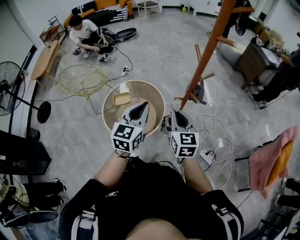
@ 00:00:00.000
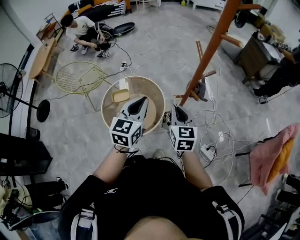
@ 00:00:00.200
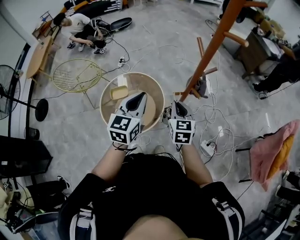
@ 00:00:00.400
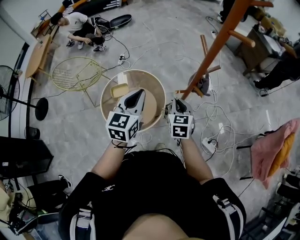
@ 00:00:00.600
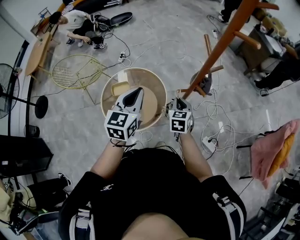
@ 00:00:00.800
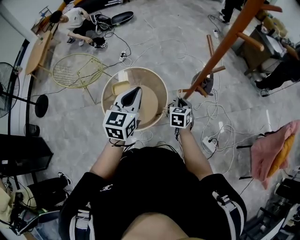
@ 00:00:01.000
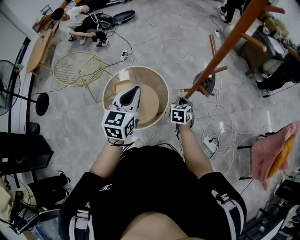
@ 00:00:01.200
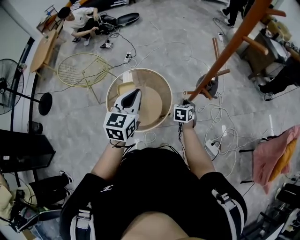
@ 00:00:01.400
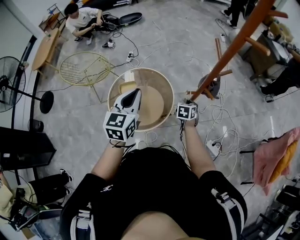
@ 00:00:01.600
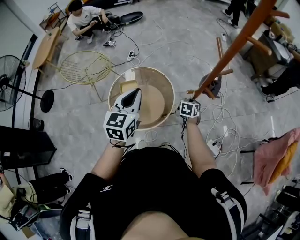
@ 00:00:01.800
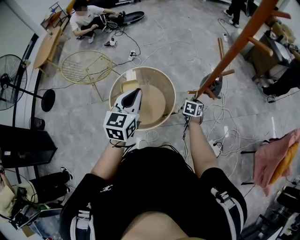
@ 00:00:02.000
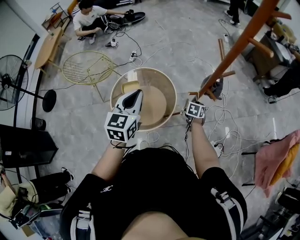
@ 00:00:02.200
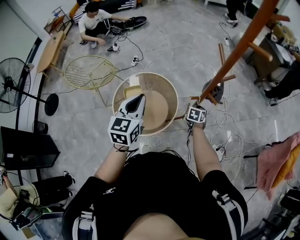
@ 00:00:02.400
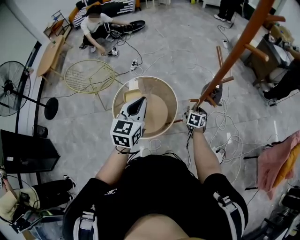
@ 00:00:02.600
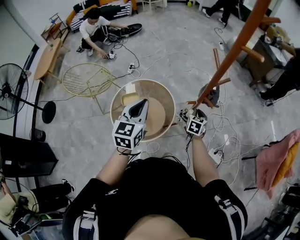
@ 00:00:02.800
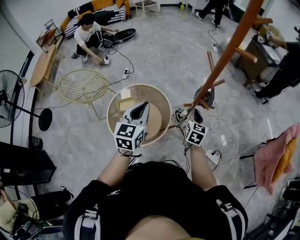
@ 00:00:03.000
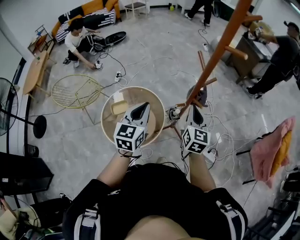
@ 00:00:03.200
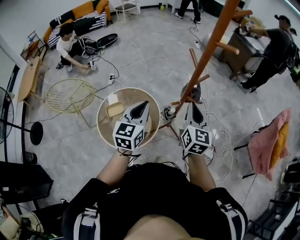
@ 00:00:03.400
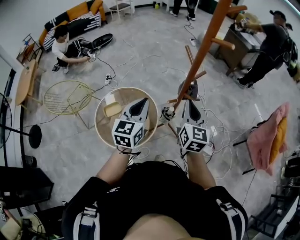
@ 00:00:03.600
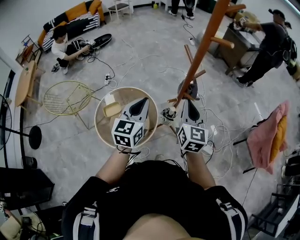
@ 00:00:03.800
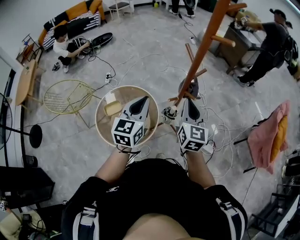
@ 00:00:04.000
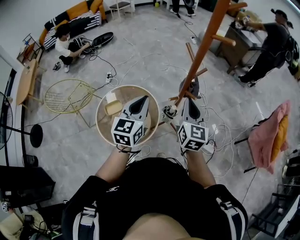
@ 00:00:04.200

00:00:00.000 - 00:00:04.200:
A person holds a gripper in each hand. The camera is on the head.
00:00:00.000 - 00:00:01.400: The left gripper heads to the left and forward, covering about 10 cm. Meanwhile the right gripper shifts some 25 cm downward and forward, and angles its fingers downward, by approximately 30 degrees.
00:00:01.400 - 00:00:02.800: The right gripper moves roughly 5 cm downward and comes back.
00:00:02.800 - 00:00:04.200: The right gripper is displaced upward by about 25 cm, and changes its angle by about 30 degrees. Meanwhile the left gripper travels to the right by roughly 5 cm.

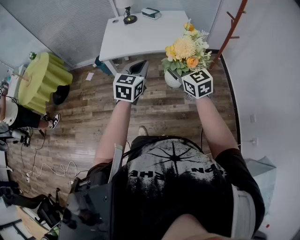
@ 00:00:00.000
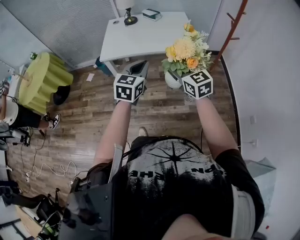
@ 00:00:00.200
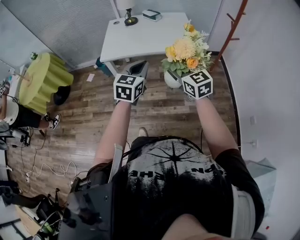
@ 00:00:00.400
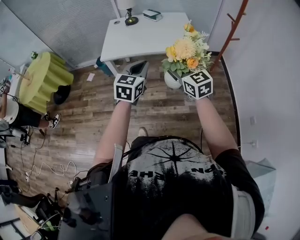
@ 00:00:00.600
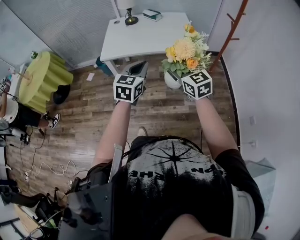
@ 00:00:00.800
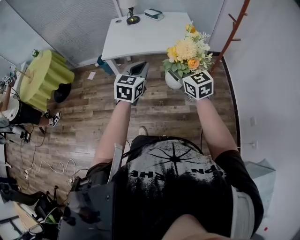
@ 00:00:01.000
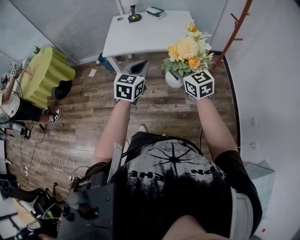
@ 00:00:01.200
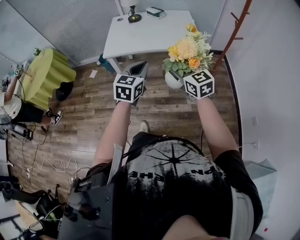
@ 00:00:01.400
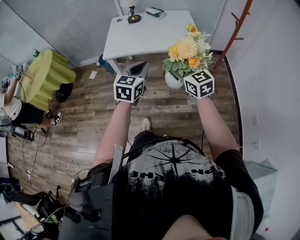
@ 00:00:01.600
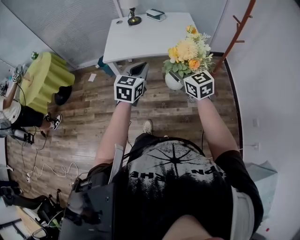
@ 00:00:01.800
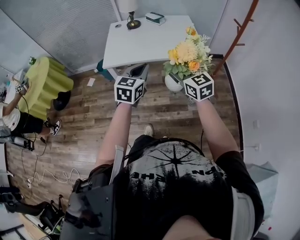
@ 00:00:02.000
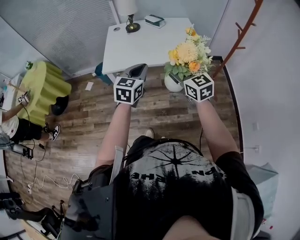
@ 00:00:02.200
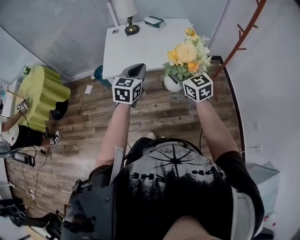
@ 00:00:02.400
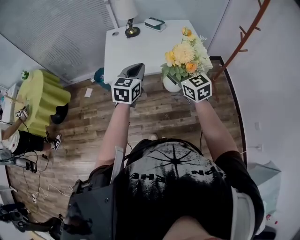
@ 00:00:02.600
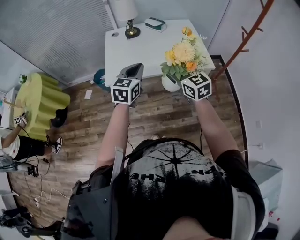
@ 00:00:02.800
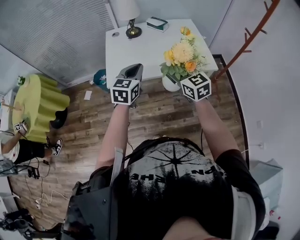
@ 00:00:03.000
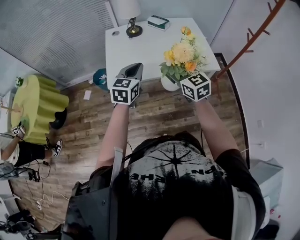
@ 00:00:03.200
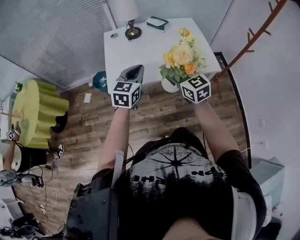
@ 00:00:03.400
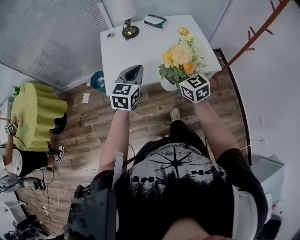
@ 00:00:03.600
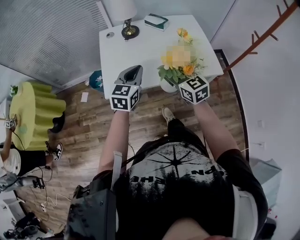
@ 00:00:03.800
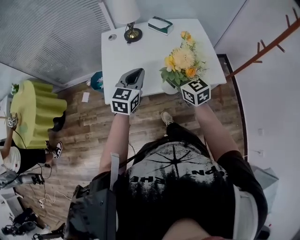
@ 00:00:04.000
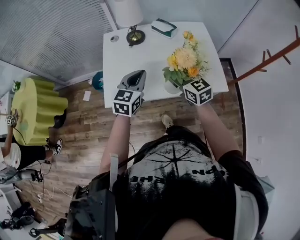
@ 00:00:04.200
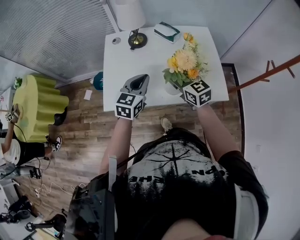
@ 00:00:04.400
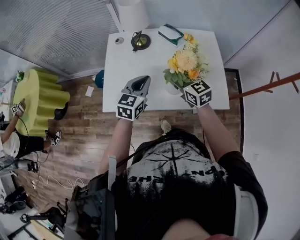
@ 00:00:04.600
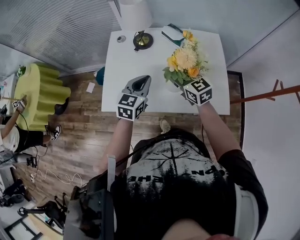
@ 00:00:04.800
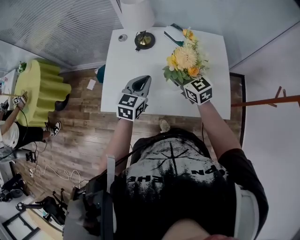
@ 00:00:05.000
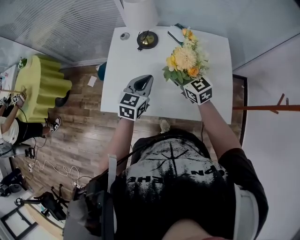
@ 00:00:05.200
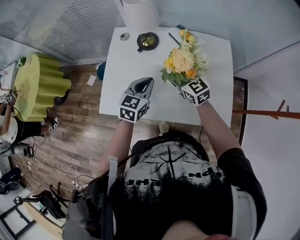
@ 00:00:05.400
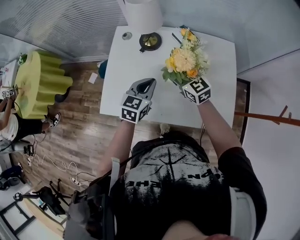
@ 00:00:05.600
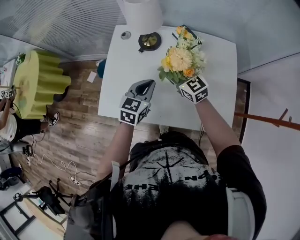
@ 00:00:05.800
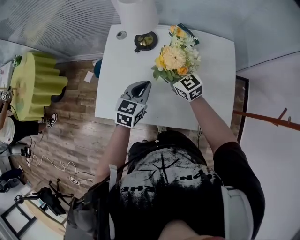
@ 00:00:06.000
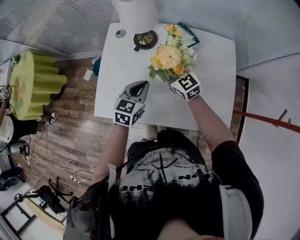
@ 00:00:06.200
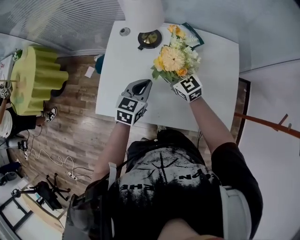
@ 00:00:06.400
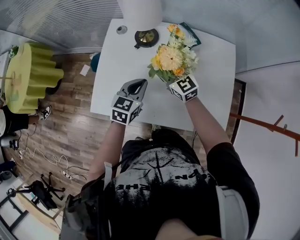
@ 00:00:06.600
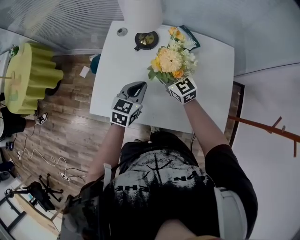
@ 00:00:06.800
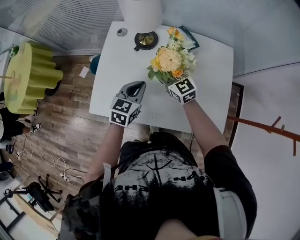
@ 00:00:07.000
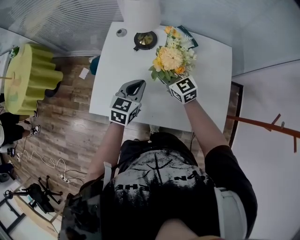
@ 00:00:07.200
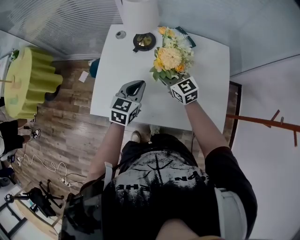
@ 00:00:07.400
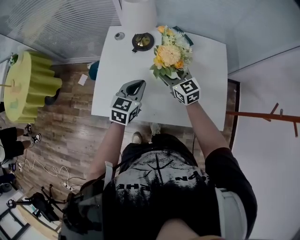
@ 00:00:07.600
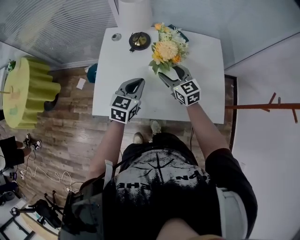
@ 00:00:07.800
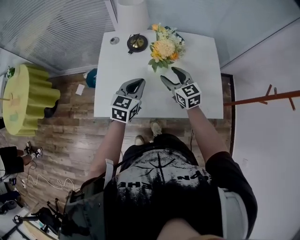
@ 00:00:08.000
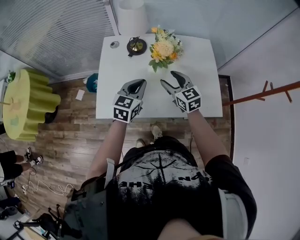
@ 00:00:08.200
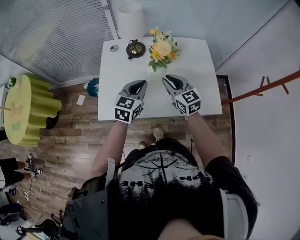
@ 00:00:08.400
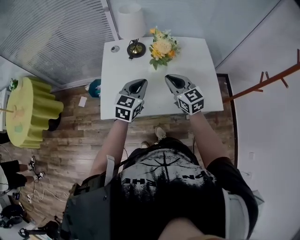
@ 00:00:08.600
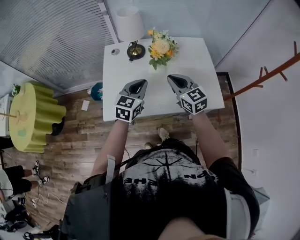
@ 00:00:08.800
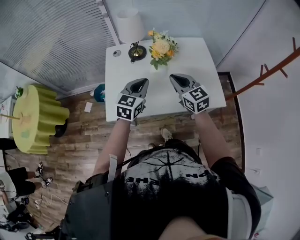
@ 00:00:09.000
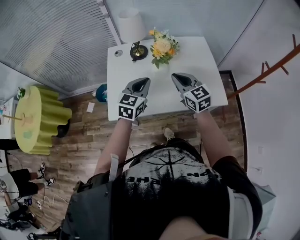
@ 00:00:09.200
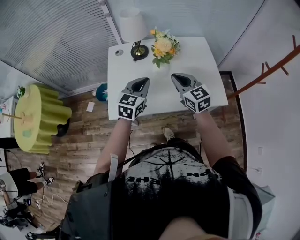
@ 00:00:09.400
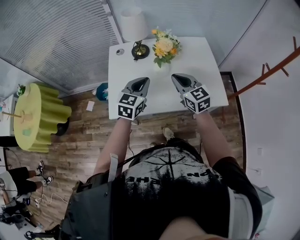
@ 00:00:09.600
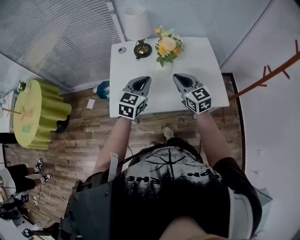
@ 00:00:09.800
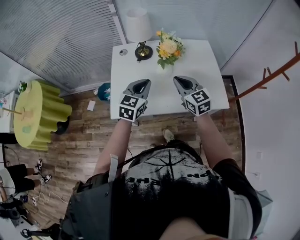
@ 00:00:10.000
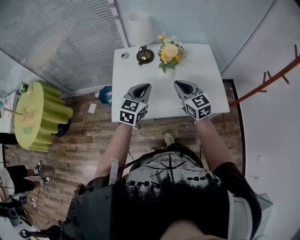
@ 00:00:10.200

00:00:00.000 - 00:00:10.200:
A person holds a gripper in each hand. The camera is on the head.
00:00:00.000 - 00:00:01.400: The grippers make only small movements.
00:00:01.400 - 00:00:03.000: The two grippers go roughly 25 cm forward and to the left.
00:00:03.000 - 00:00:04.400: Both grippers travel together forward, some 20 cm.
00:00:04.400 - 00:00:05.800: The two grippers go about 15 cm forward and downward.
00:00:05.800 - 00:00:07.200: The grippers stay close to where they were, moving slightly.
00:00:07.200 - 00:00:08.800: The right gripper is displaced backward and upward by roughly 20 cm, and closes, while the left gripper goes some 10 cm upward and backward.
00:00:08.800 - 00:00:10.200: The grippers stay close to where they were, moving slightly.

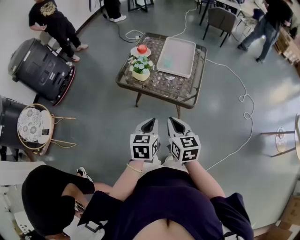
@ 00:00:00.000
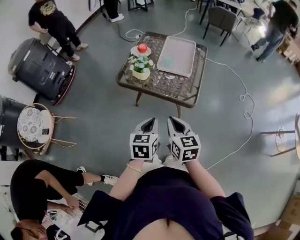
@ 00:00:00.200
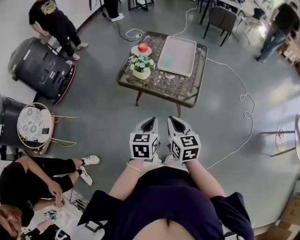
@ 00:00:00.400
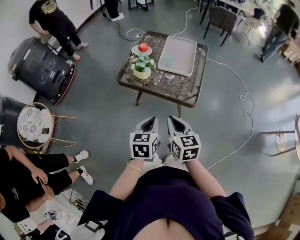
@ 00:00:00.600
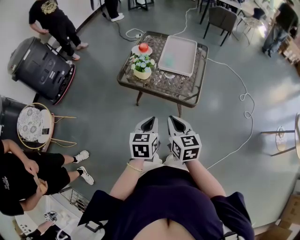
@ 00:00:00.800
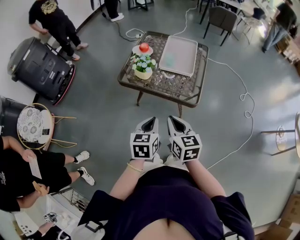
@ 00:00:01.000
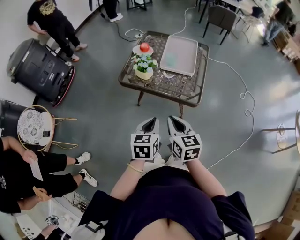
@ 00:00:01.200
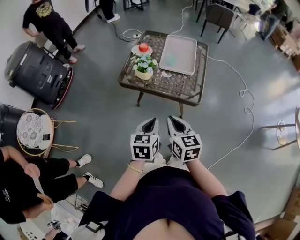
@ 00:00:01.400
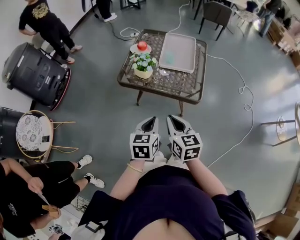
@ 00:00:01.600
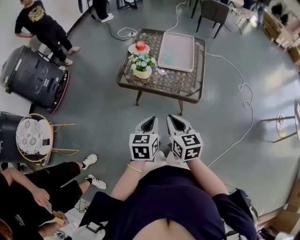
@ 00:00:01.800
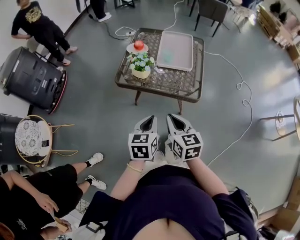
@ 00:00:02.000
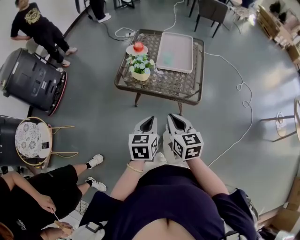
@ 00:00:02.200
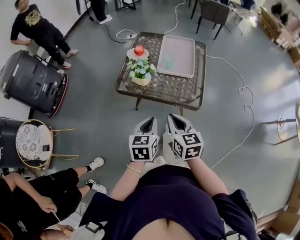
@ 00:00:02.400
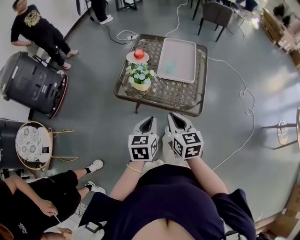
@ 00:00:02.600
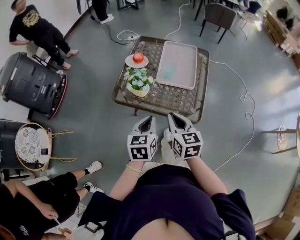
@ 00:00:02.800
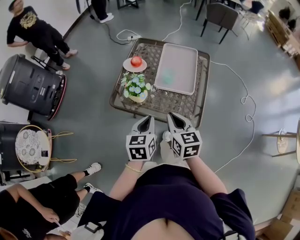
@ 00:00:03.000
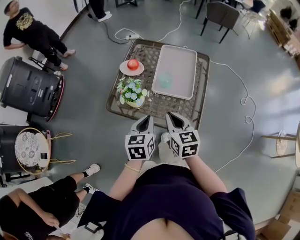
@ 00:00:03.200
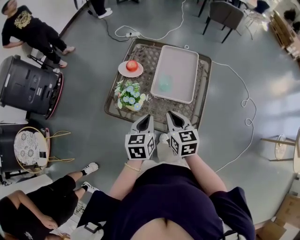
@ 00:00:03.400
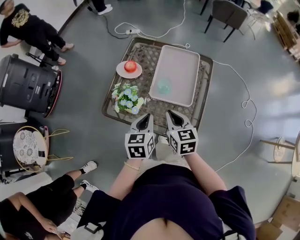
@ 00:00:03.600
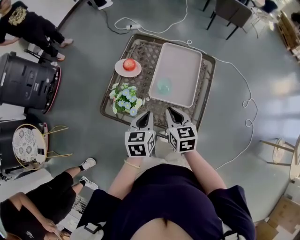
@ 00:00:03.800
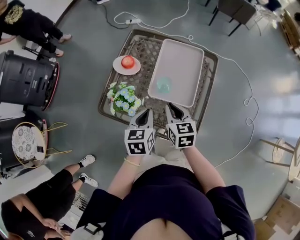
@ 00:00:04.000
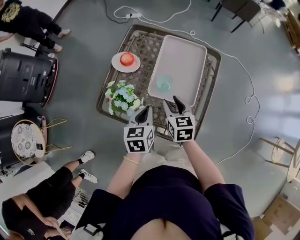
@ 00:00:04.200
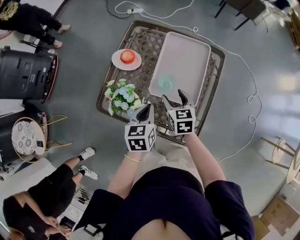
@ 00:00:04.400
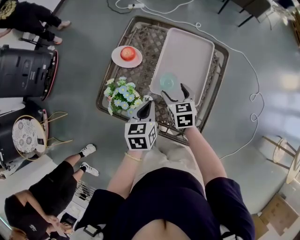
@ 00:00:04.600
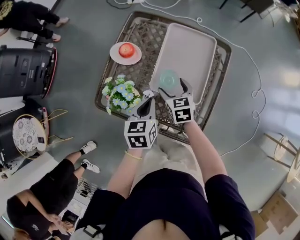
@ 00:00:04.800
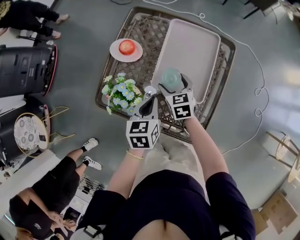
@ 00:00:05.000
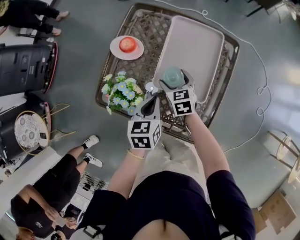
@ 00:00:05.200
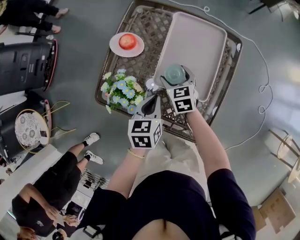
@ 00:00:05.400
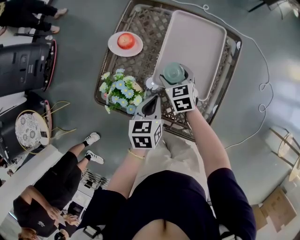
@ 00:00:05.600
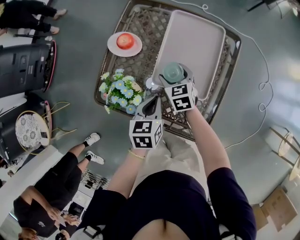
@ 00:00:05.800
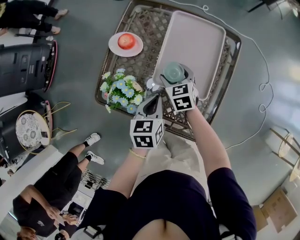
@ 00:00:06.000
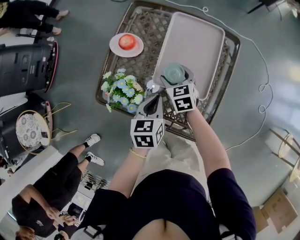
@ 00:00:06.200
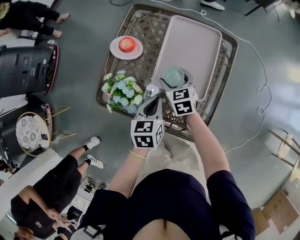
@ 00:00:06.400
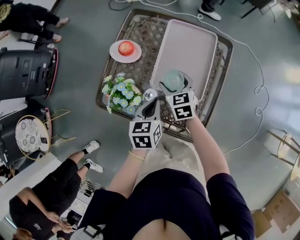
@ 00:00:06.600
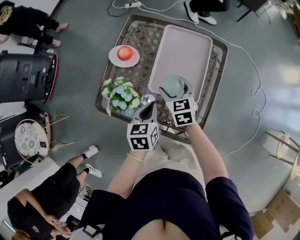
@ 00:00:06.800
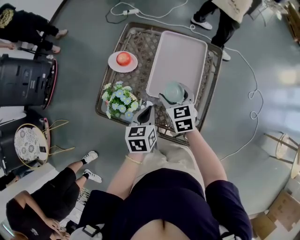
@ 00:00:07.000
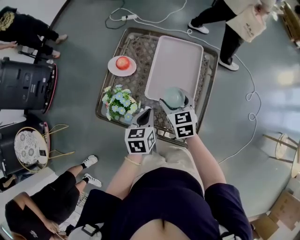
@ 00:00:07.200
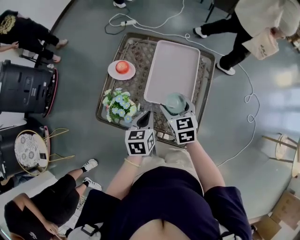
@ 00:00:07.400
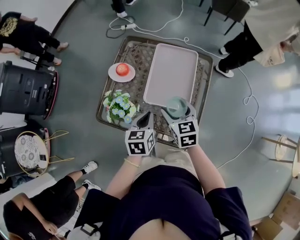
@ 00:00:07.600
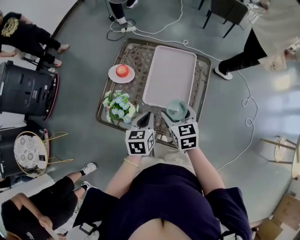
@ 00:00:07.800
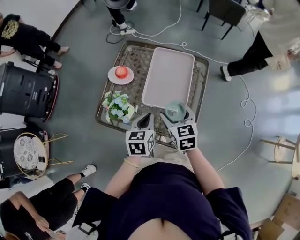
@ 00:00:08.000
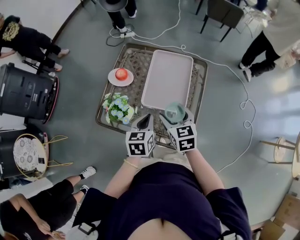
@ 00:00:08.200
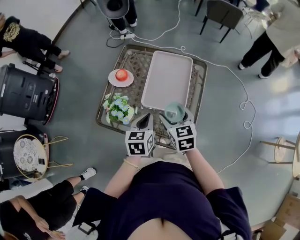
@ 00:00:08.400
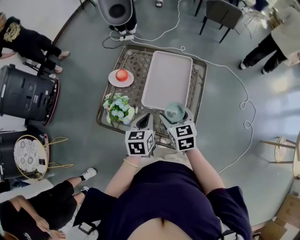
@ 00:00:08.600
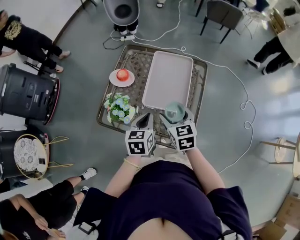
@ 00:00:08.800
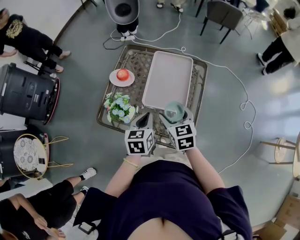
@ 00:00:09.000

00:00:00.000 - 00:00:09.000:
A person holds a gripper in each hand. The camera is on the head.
00:00:00.000 - 00:00:01.600: Both grippers travel together to the left, approximately 5 cm.
00:00:01.600 - 00:00:03.000: Both grippers travel together forward, roughly 20 cm.
00:00:03.000 - 00:00:04.400: The two grippers go some 25 cm forward and downward. The right gripper opens.
00:00:04.400 - 00:00:06.000: The right gripper moves downward and forward, roughly 10 cm, while the left gripper shifts by approximately 5 cm.
00:00:06.000 - 00:00:07.600: The left gripper travels upward by approximately 5 cm; the right gripper is displaced upward and backward by roughly 20 cm.
00:00:07.600 - 00:00:09.000: The grippers make only small movements.
